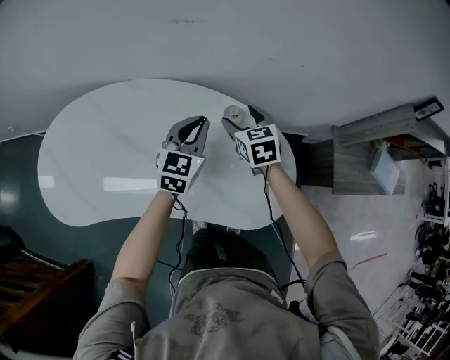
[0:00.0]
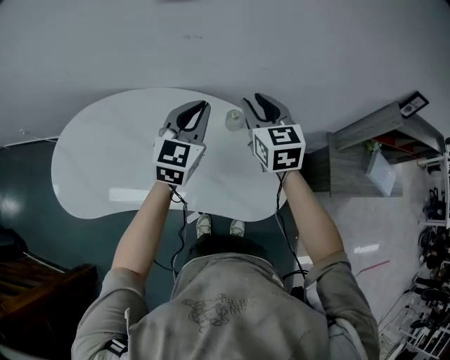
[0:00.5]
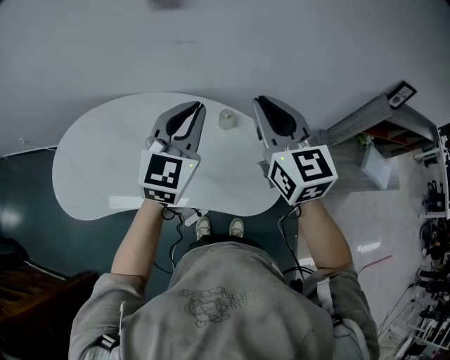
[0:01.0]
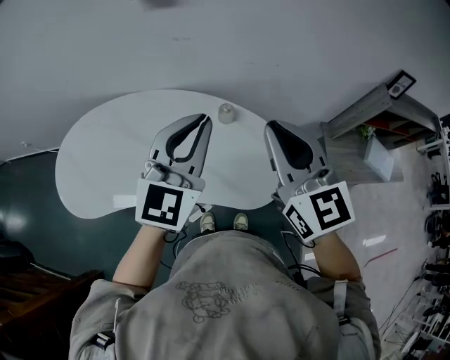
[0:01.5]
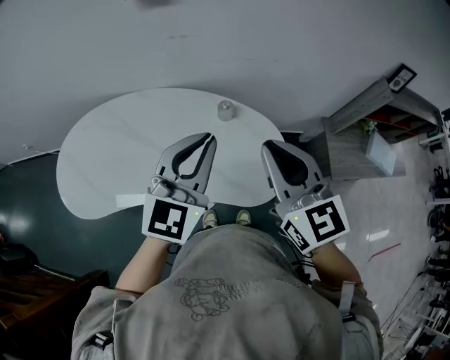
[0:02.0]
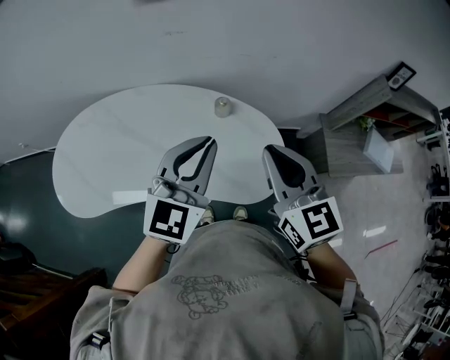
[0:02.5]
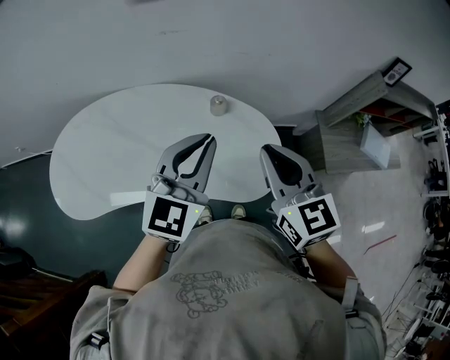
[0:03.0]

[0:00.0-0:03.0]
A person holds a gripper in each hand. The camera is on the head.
0.0 to 1.5 s: The grippers both shift upward and backward by some 35 cm. The right gripper tips its fingers upward by approximately 30 degrees, and closes its fingers. The left gripper turns by some 20 degrees.
1.5 to 3.0 s: The grippers both shift downward by some 5 cm.

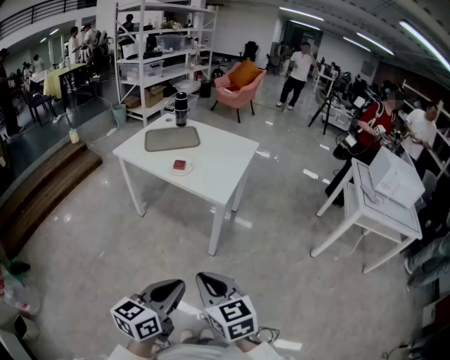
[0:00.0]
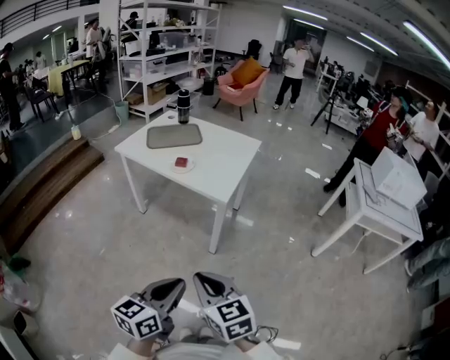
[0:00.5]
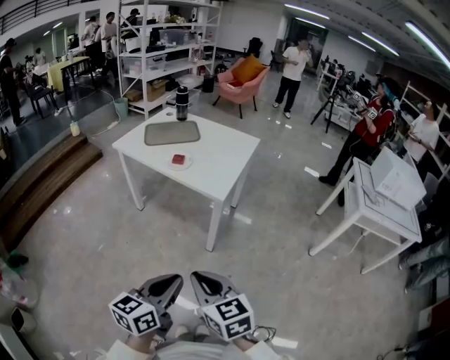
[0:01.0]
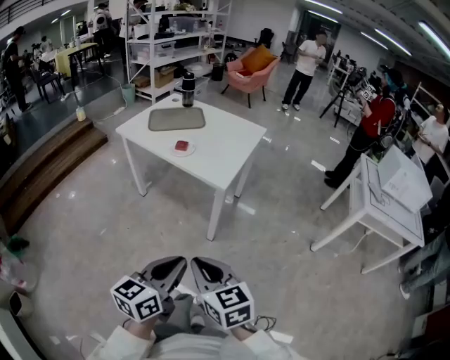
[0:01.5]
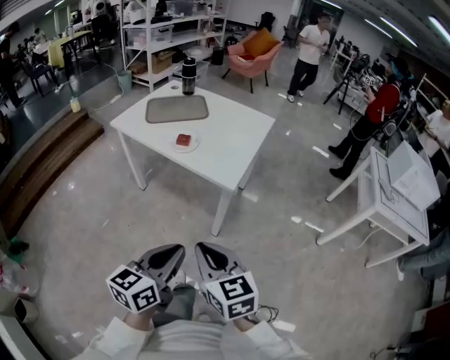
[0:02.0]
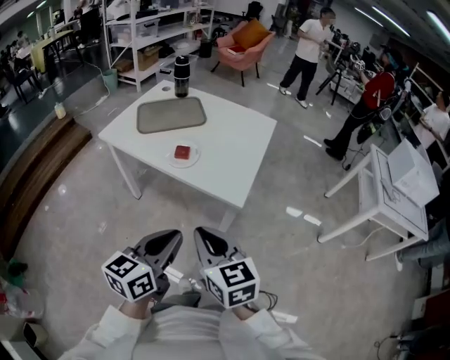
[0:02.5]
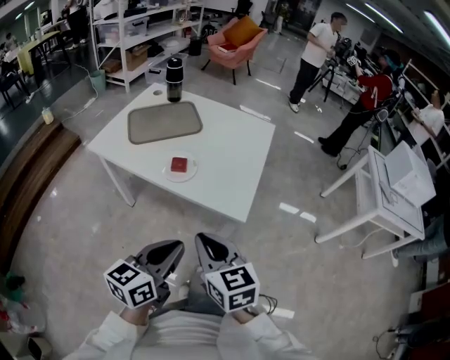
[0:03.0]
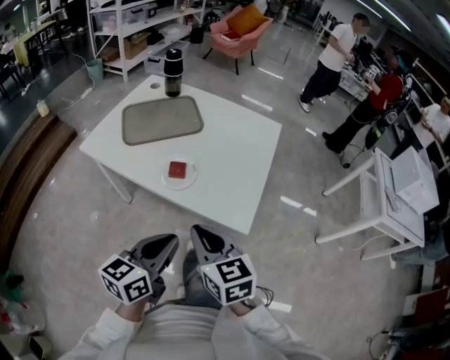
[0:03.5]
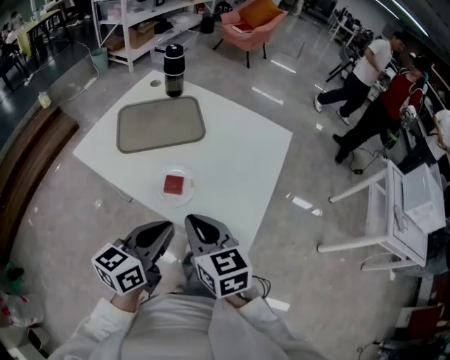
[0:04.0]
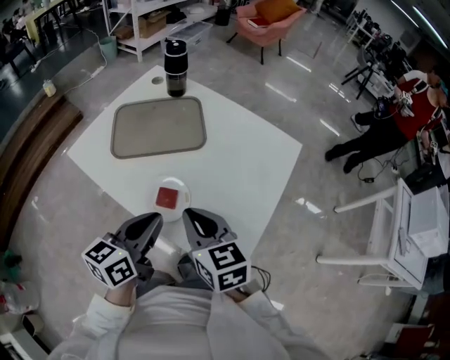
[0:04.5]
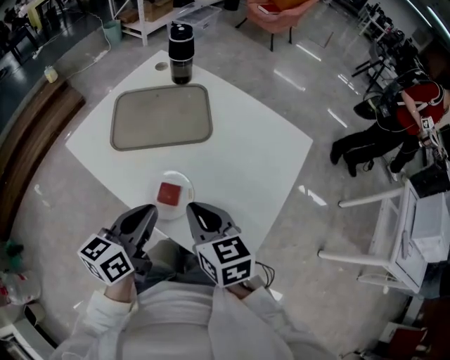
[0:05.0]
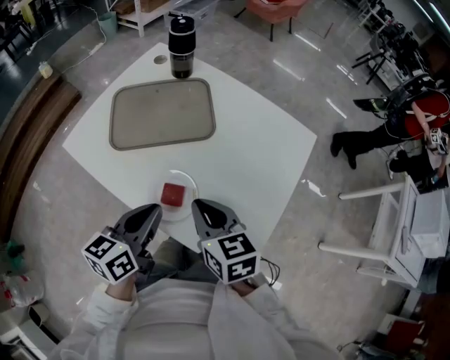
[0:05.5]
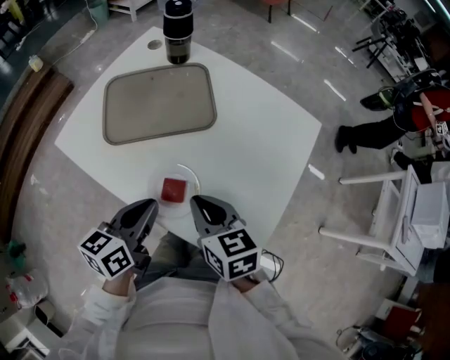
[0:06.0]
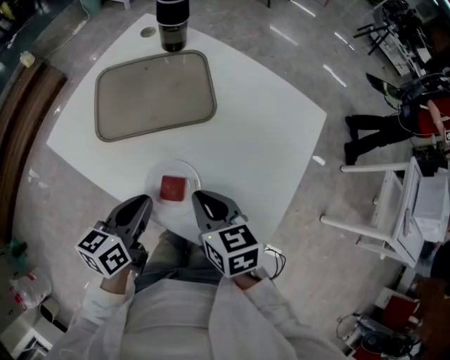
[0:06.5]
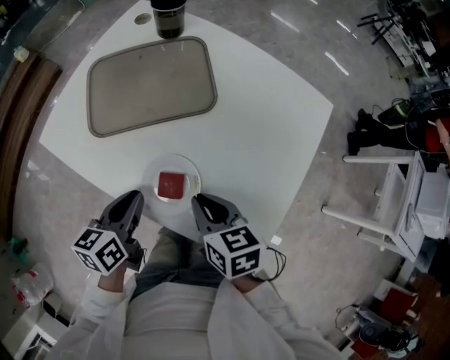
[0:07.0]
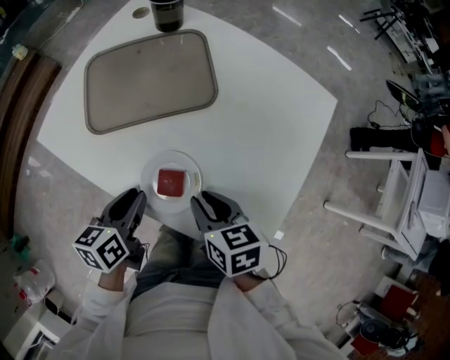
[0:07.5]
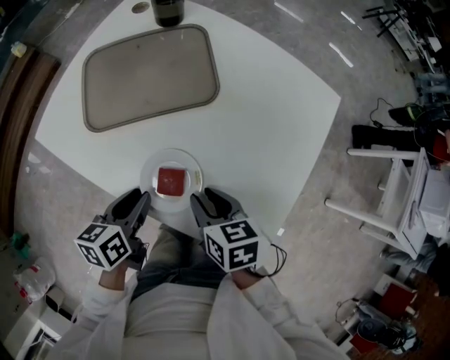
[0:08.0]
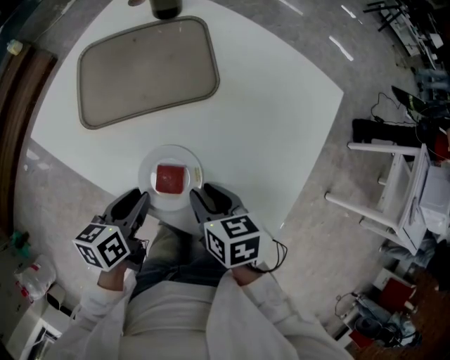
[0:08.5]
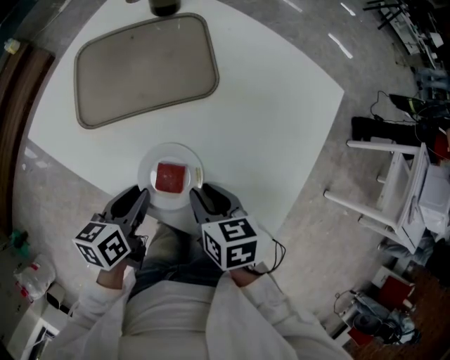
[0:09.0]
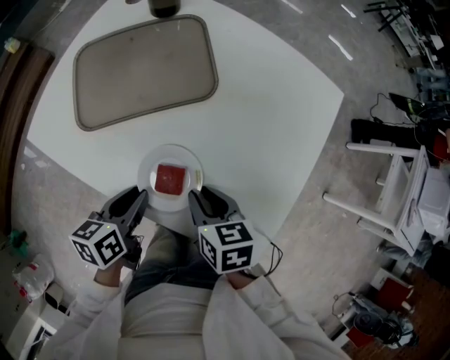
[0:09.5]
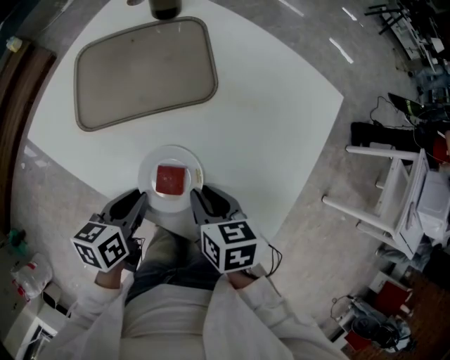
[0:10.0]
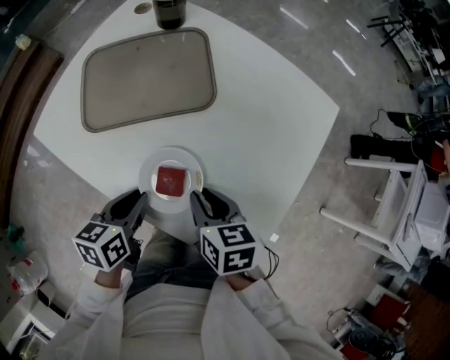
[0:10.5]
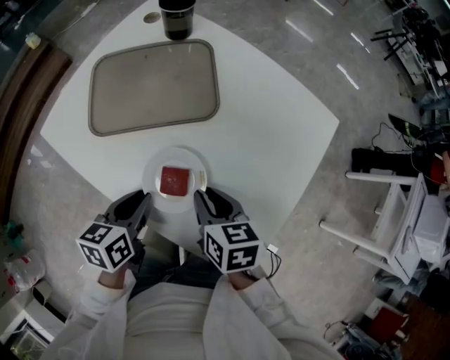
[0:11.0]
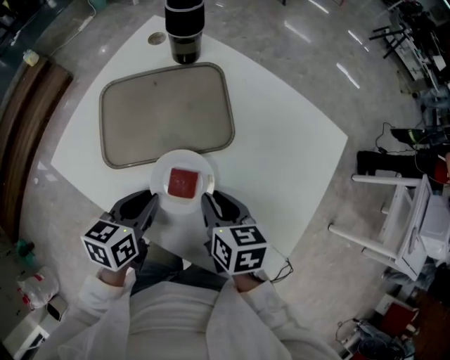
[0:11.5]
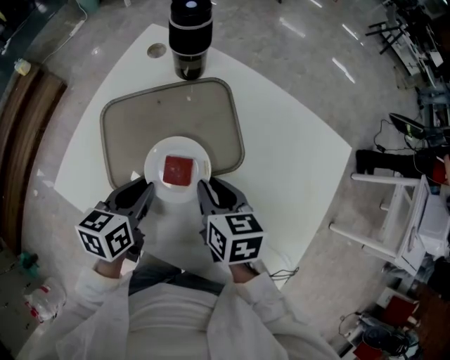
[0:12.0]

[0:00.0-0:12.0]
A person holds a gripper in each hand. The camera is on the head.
0.0 to 2.0 s: The two grippers go roughly 10 cm forward.
2.0 to 4.0 s: The two grippers travel together, forward, about 40 cm.
4.0 to 6.0 s: Both grippers travel together forward and downward, roughly 15 cm.
6.0 to 8.0 s: The two grippers go approximately 10 cm downward. The right gripper opens its fingers.
8.0 to 10.0 s: The grippers move only a little.
10.0 to 12.0 s: Both grippers travel together forward and to the left, about 20 cm.

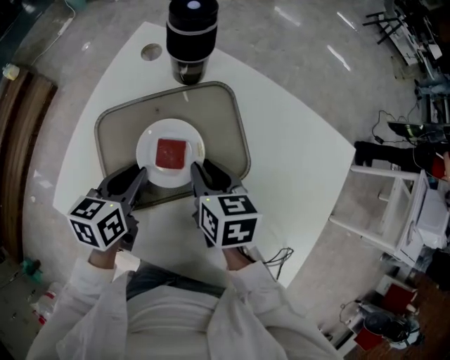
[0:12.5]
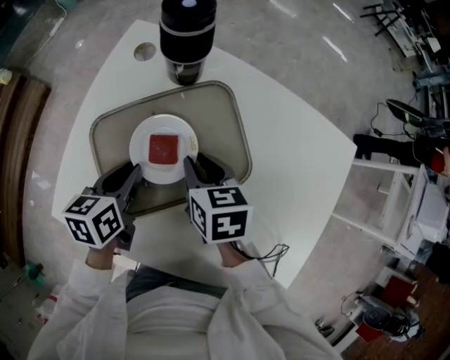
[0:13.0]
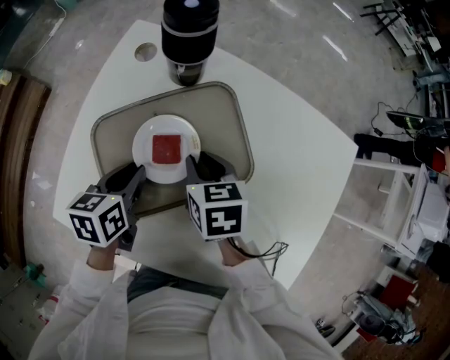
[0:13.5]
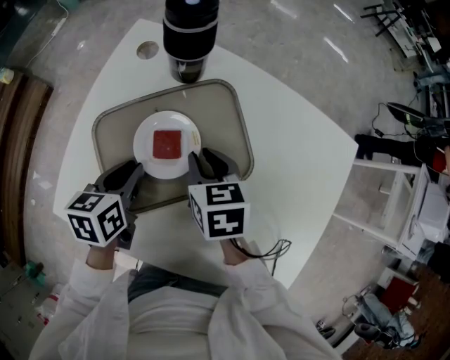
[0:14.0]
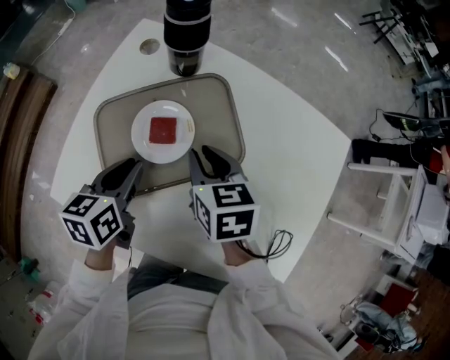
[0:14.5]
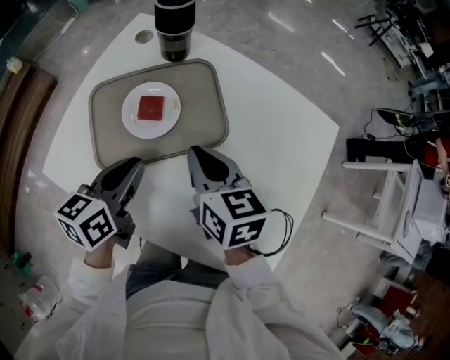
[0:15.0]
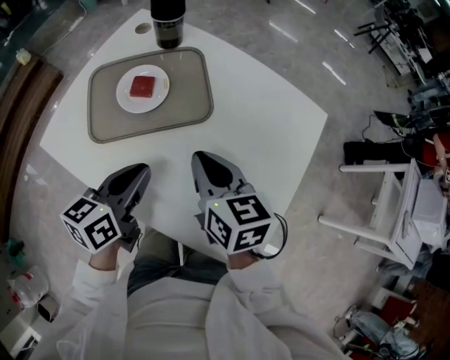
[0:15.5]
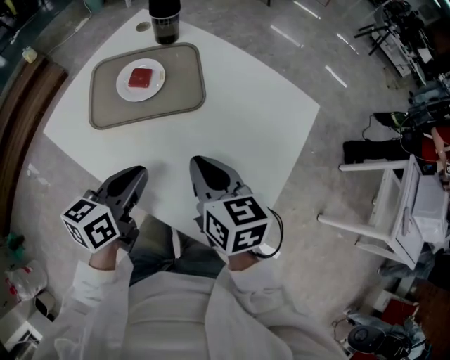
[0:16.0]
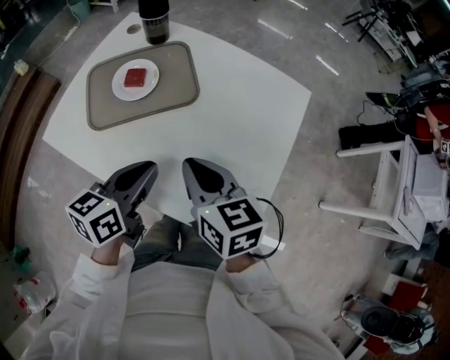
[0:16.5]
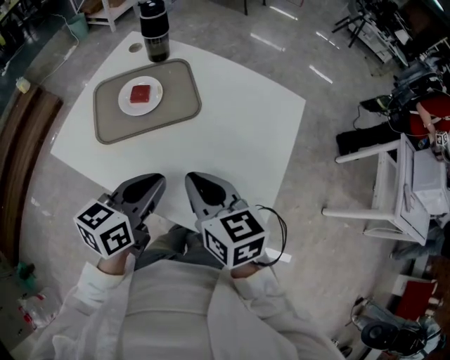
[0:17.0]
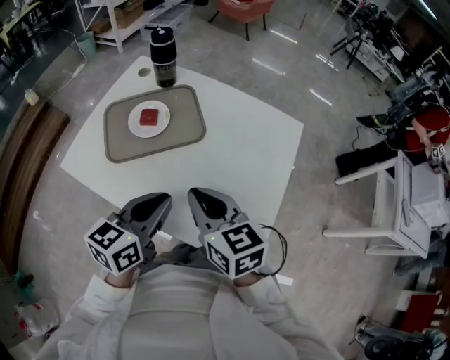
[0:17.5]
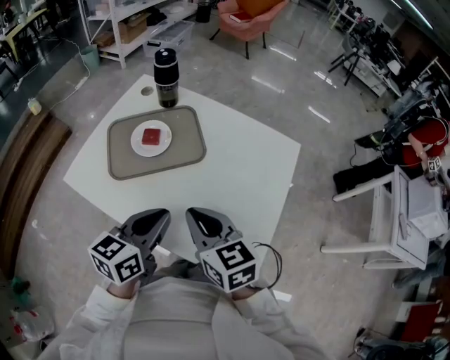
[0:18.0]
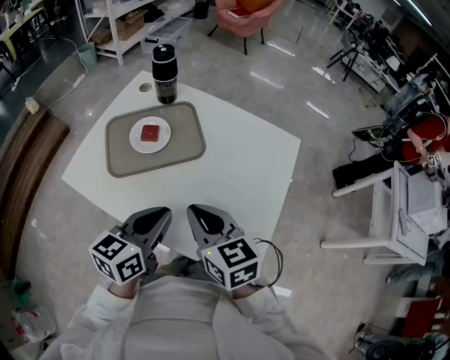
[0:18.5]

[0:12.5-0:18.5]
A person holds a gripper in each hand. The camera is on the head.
12.5 to 14.5 s: The grippers make only small movements.
14.5 to 16.5 s: The two grippers go approximately 25 cm backward and to the right.
16.5 to 18.5 s: The left gripper changes place by approximately 5 cm; the right gripper shifts by some 5 cm.

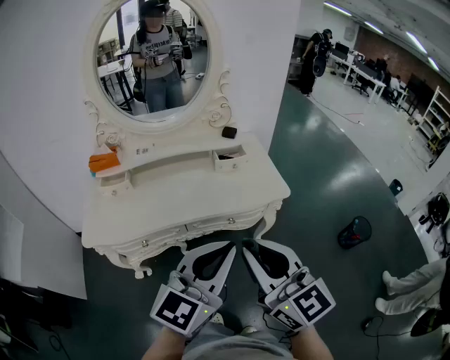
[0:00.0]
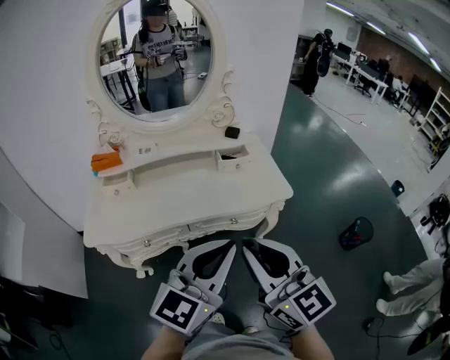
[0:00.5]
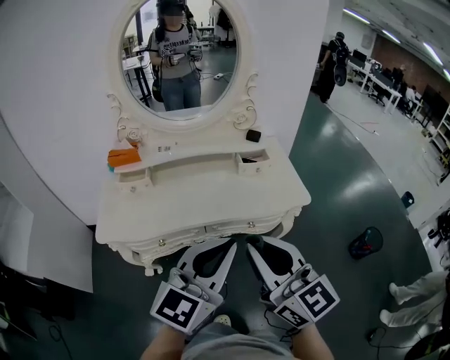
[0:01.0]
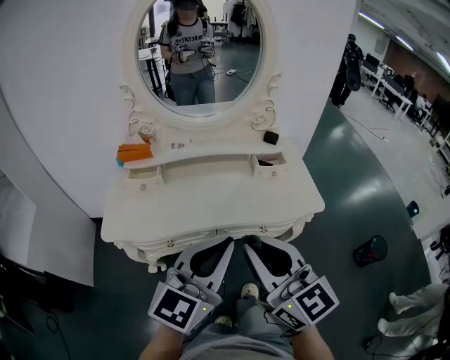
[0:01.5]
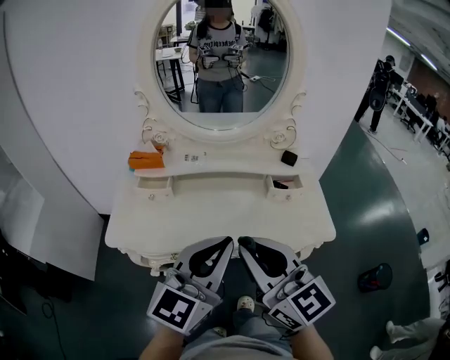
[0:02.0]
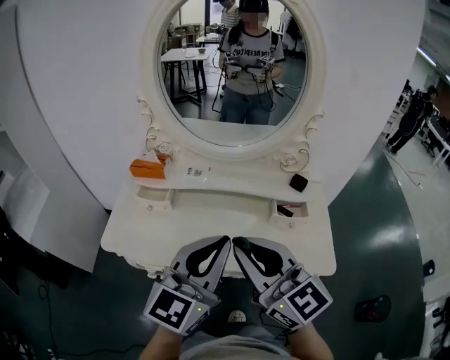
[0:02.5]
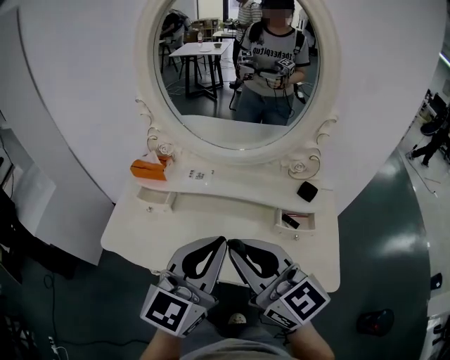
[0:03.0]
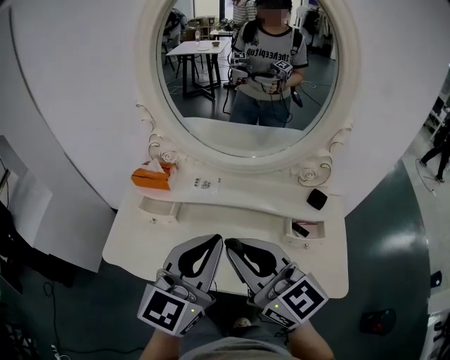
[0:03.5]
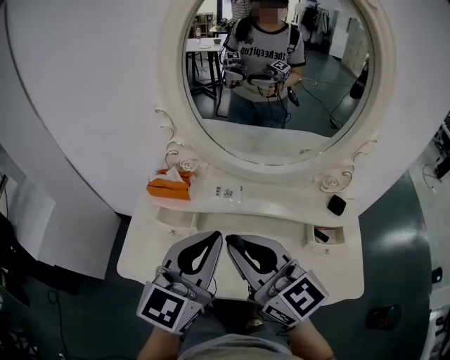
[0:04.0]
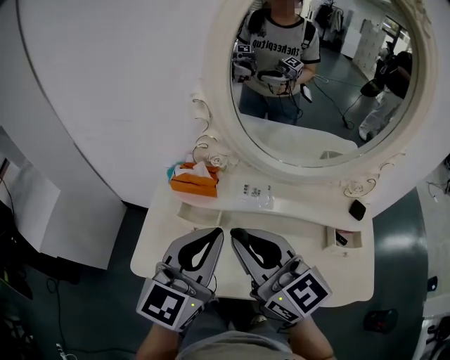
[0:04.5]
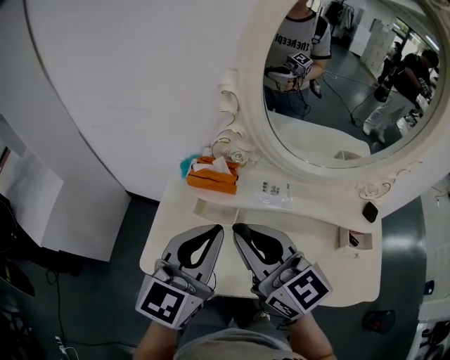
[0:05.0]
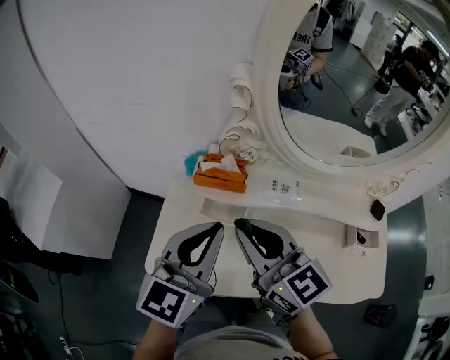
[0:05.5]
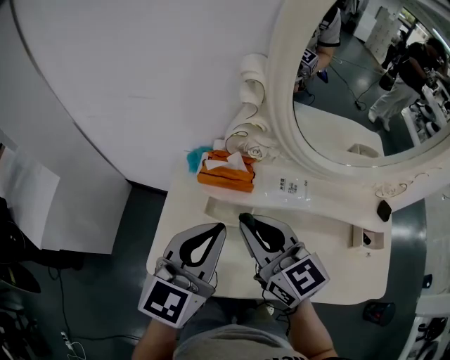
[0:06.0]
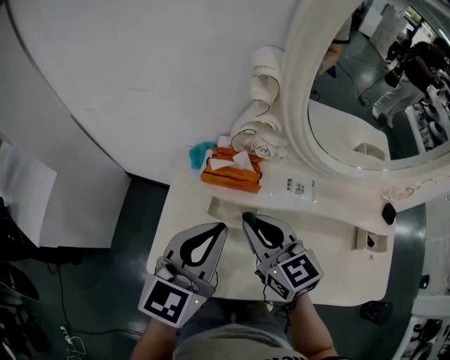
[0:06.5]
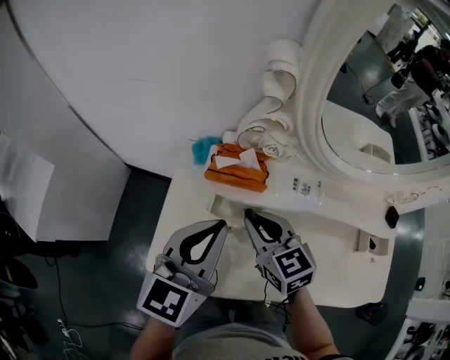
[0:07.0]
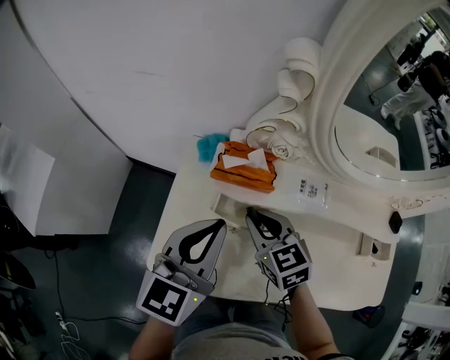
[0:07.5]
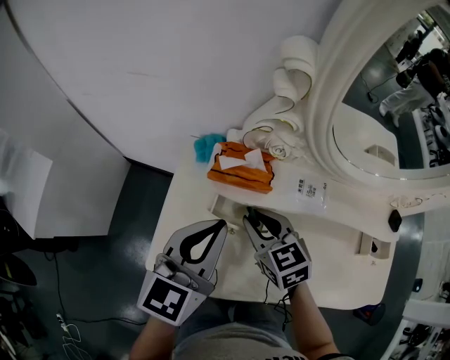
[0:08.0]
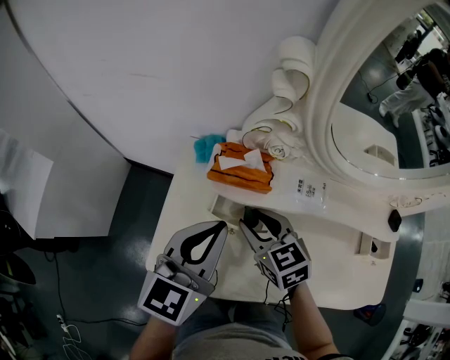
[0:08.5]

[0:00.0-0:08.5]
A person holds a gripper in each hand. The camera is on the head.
0.0 to 2.0 s: The grippers both shift forward and to the left by some 20 cm.
2.0 to 4.0 s: Both grippers move forward, approximately 20 cm.
4.0 to 6.5 s: The right gripper travels downward, to the left and forward by some 25 cm, and changes its angle by about 20 degrees. Meanwhile the left gripper goes about 25 cm to the left, downward and forward.
6.5 to 8.5 s: The right gripper is displaced downward by some 10 cm, and opens.
